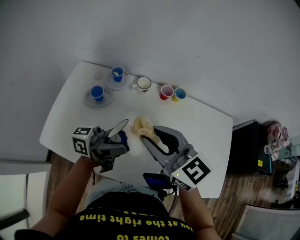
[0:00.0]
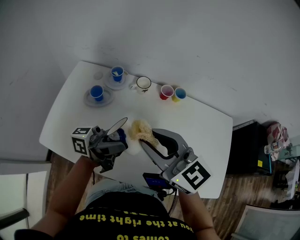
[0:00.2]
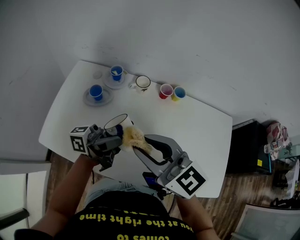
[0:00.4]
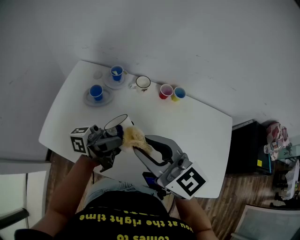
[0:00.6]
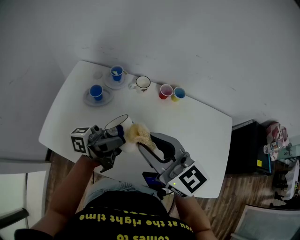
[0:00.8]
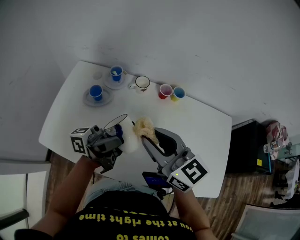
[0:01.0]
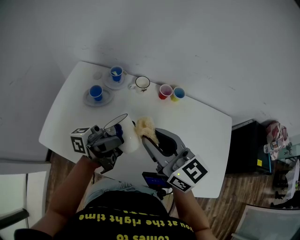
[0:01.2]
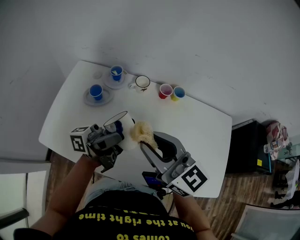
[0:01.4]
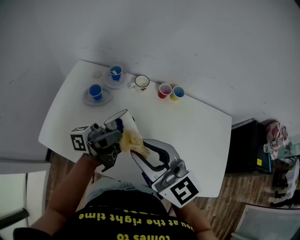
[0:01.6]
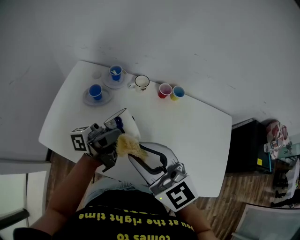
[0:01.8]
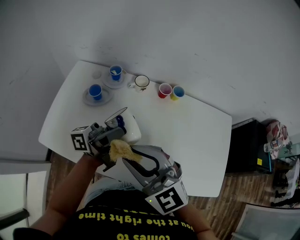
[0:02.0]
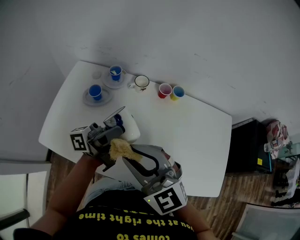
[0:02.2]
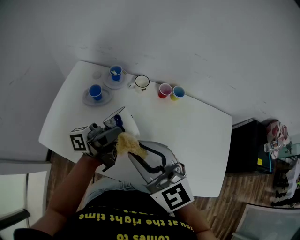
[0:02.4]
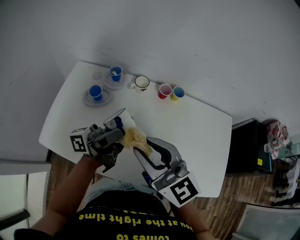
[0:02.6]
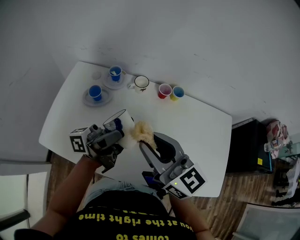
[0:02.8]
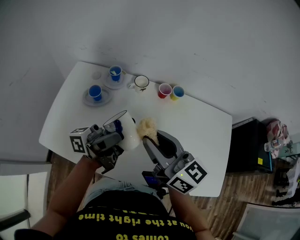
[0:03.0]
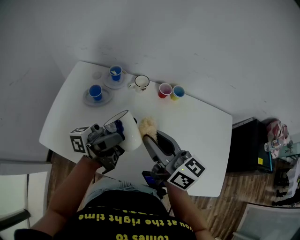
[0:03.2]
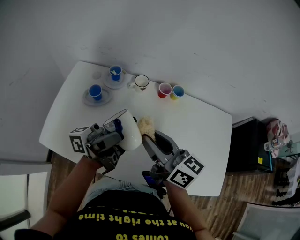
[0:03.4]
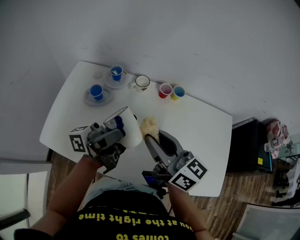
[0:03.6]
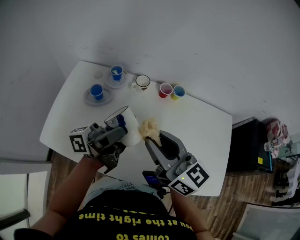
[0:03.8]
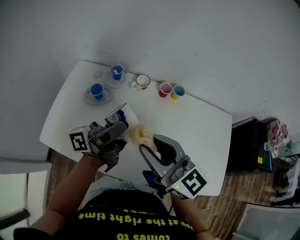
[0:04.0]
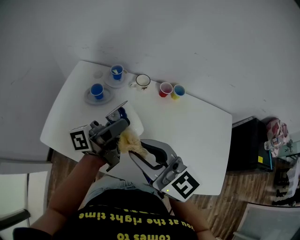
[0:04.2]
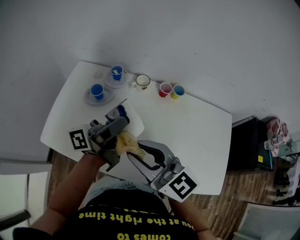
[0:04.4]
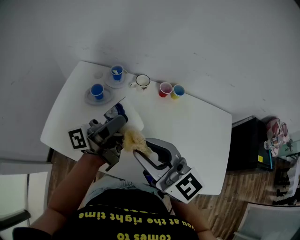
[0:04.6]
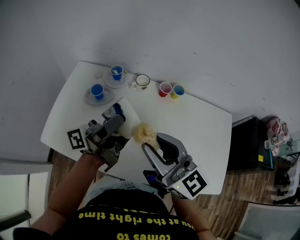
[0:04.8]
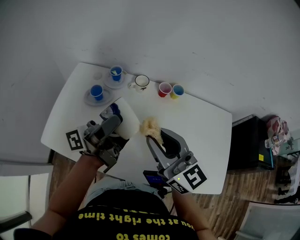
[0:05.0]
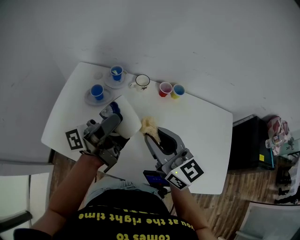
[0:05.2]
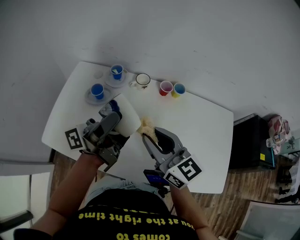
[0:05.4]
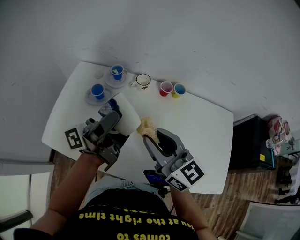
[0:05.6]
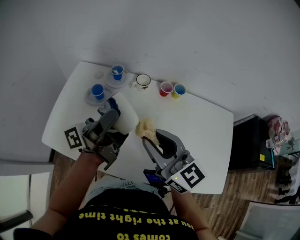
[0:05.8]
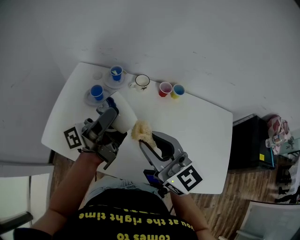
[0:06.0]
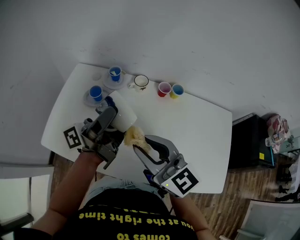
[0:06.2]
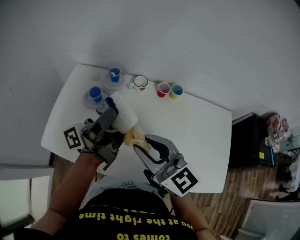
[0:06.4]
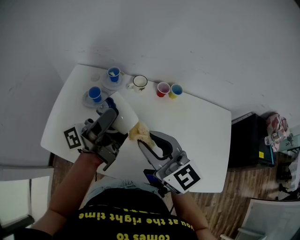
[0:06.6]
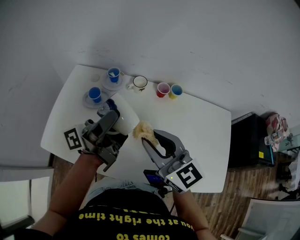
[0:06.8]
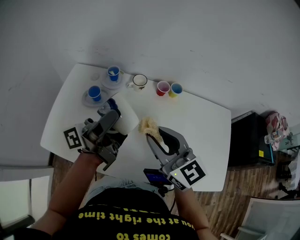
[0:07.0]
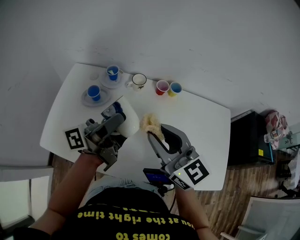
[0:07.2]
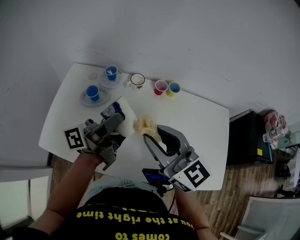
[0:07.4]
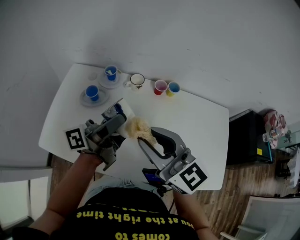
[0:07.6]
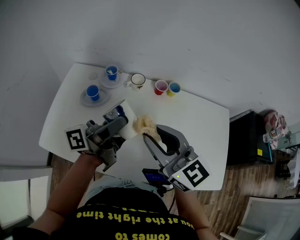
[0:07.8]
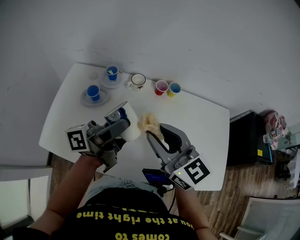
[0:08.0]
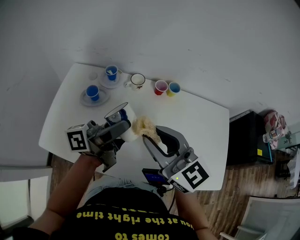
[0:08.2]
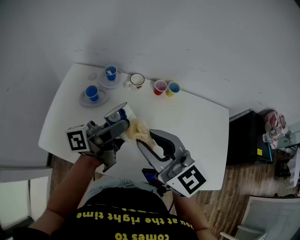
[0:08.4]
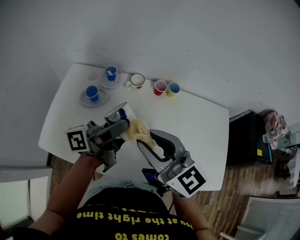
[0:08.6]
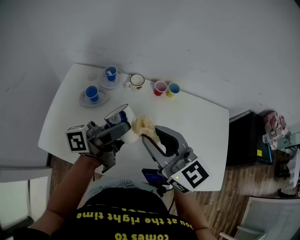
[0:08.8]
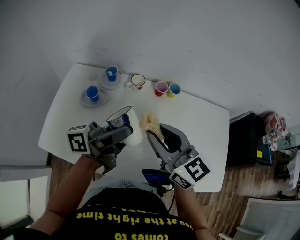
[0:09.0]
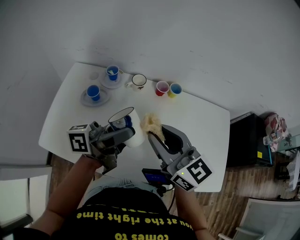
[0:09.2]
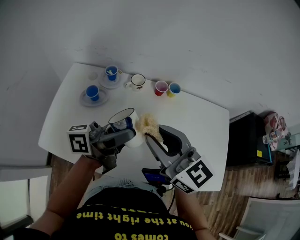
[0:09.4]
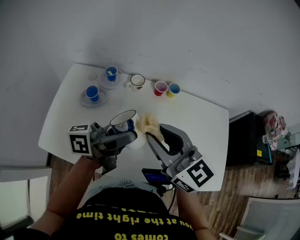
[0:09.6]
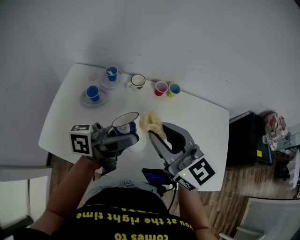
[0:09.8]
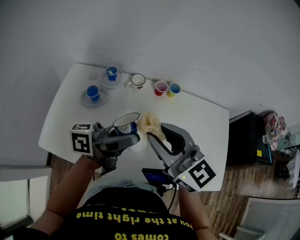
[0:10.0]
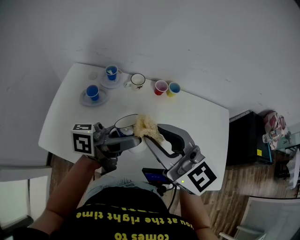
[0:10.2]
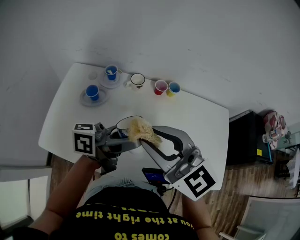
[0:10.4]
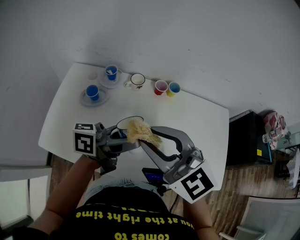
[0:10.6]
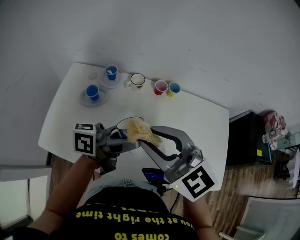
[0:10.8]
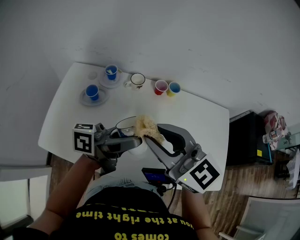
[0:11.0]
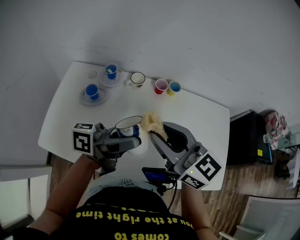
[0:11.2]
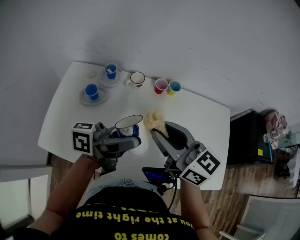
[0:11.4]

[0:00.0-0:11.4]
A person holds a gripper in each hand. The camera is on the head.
0:00.0 to 0:01.4: The grippers move only a little.
0:02.8 to 0:04.2: The right gripper shifts by roughly 5 cm.
0:04.2 to 0:05.6: The right gripper heads to the right, covering roughly 5 cm.
0:05.6 to 0:08.6: The grippers make only small movements.
0:08.6 to 0:10.0: There are only small adjustments of the grippers.

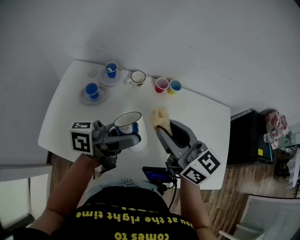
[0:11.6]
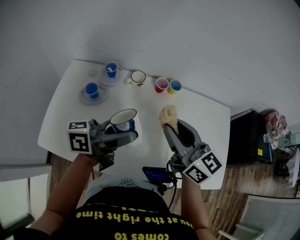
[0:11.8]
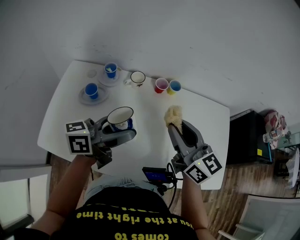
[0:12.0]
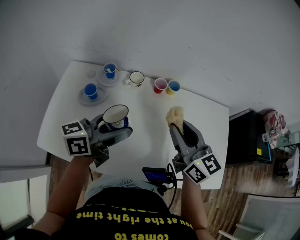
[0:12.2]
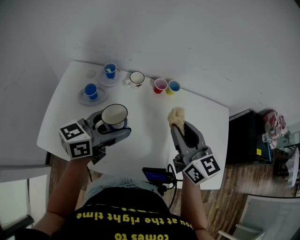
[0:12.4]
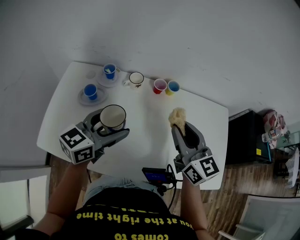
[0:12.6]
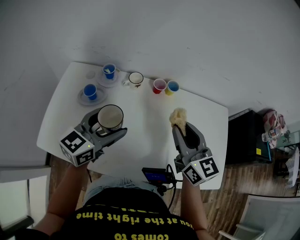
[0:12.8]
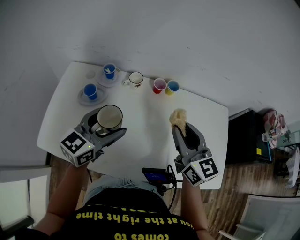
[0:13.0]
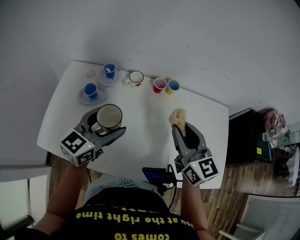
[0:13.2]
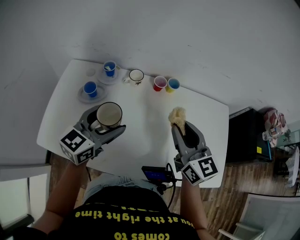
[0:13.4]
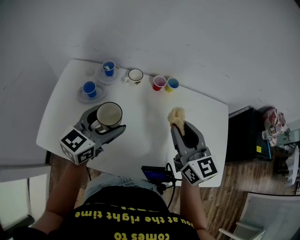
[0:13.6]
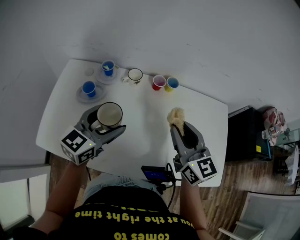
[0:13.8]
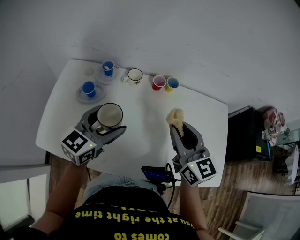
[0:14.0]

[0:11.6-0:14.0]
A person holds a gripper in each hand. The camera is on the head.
0:11.6 to 0:12.8: The left gripper heads to the left, covering some 5 cm, and swivels roughly 60 degrees. The right gripper moves to the right, approximately 5 cm, and changes its angle by about 20 degrees.
0:12.8 to 0:14.0: There are only small adjustments of the grippers.

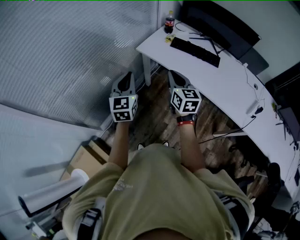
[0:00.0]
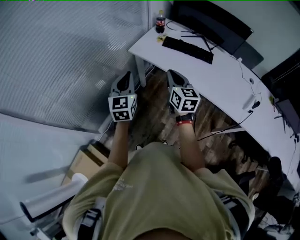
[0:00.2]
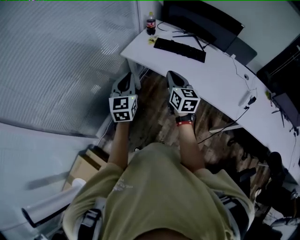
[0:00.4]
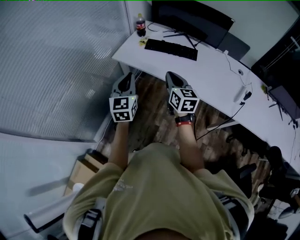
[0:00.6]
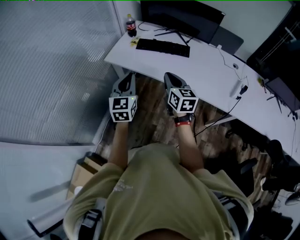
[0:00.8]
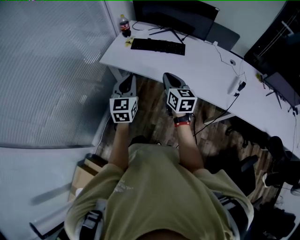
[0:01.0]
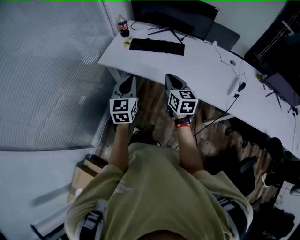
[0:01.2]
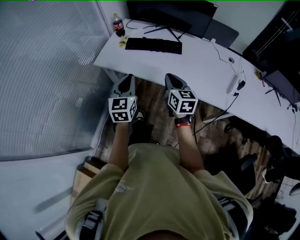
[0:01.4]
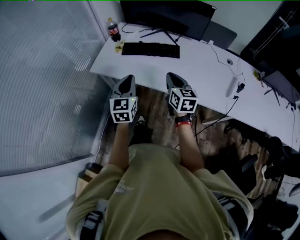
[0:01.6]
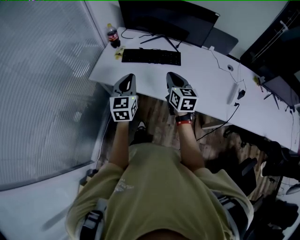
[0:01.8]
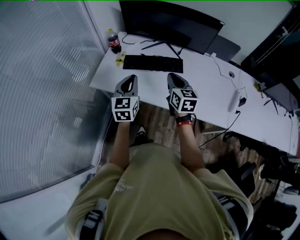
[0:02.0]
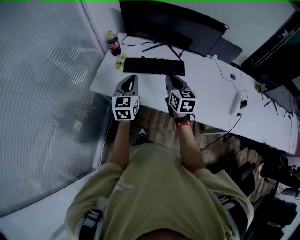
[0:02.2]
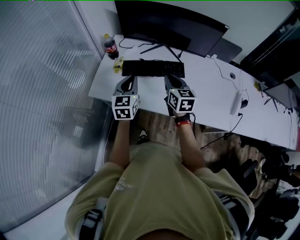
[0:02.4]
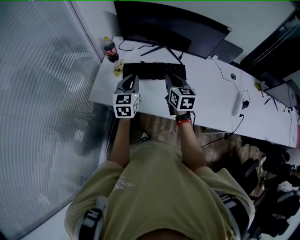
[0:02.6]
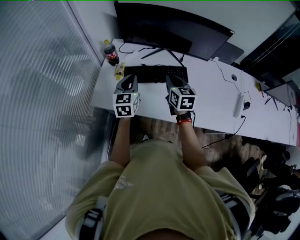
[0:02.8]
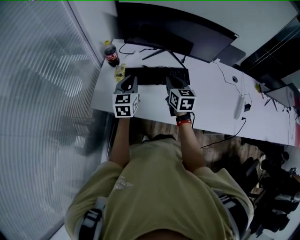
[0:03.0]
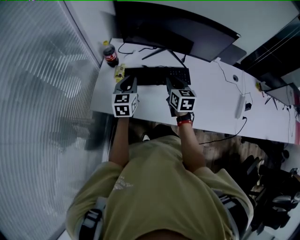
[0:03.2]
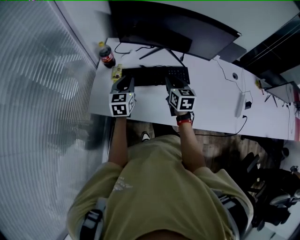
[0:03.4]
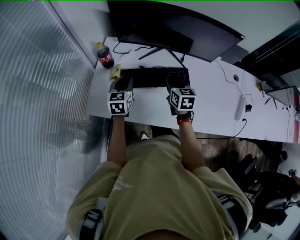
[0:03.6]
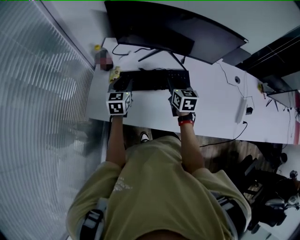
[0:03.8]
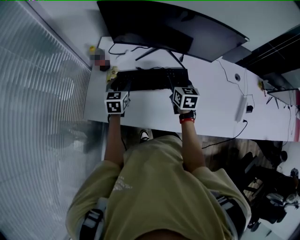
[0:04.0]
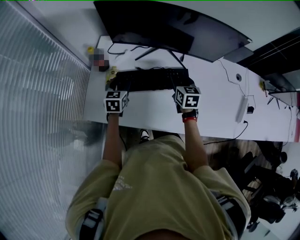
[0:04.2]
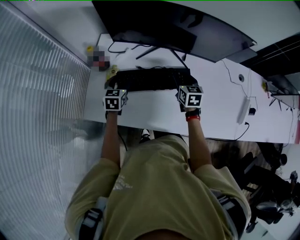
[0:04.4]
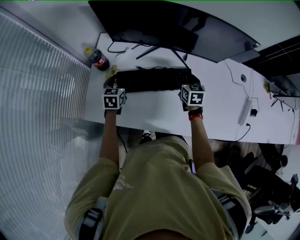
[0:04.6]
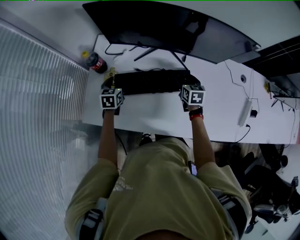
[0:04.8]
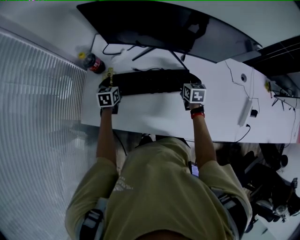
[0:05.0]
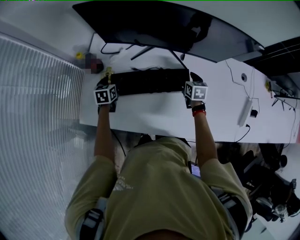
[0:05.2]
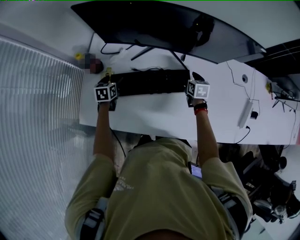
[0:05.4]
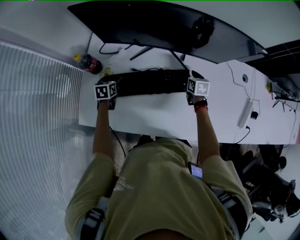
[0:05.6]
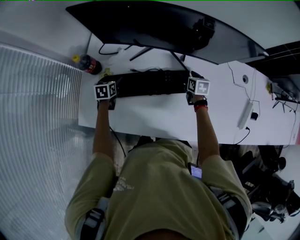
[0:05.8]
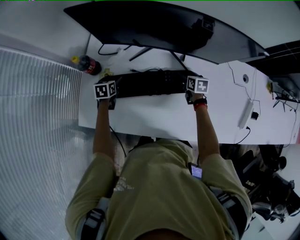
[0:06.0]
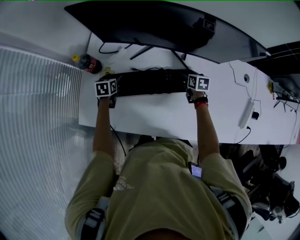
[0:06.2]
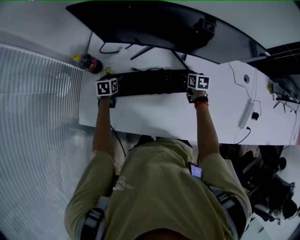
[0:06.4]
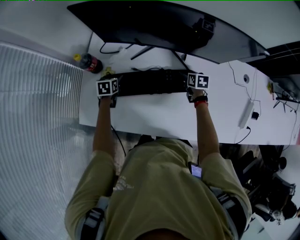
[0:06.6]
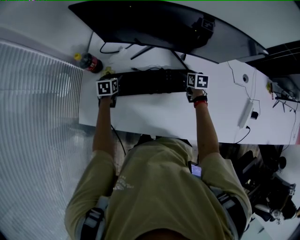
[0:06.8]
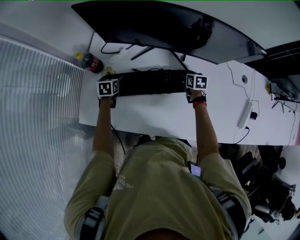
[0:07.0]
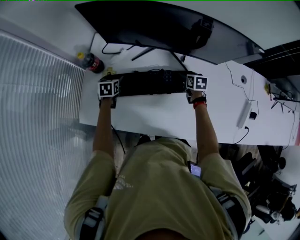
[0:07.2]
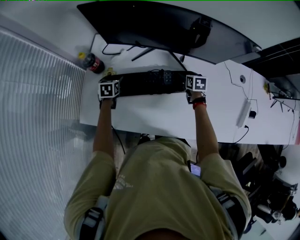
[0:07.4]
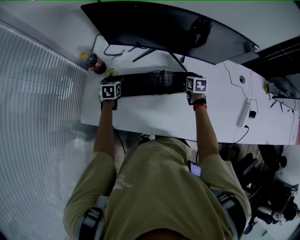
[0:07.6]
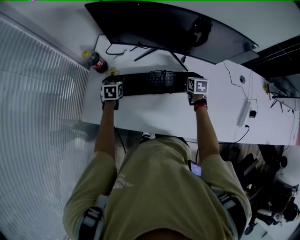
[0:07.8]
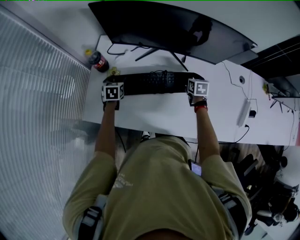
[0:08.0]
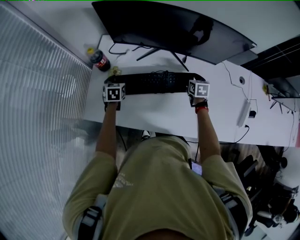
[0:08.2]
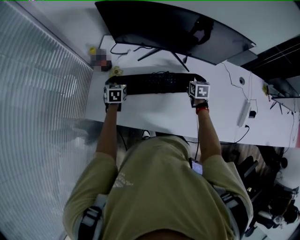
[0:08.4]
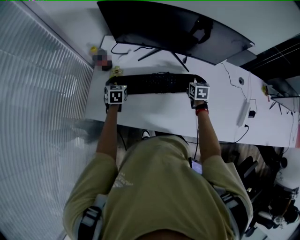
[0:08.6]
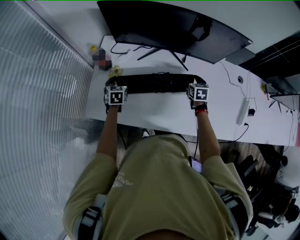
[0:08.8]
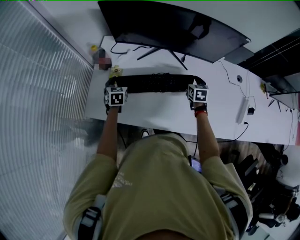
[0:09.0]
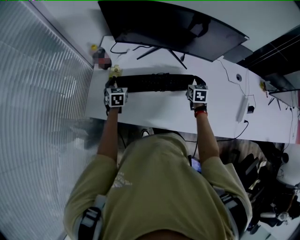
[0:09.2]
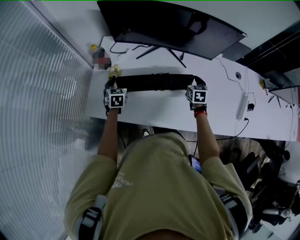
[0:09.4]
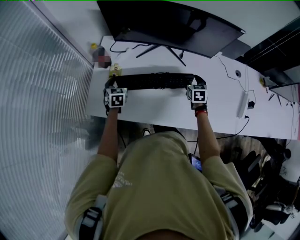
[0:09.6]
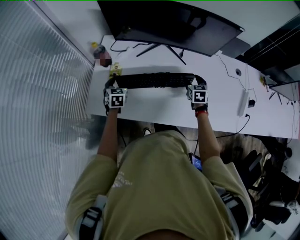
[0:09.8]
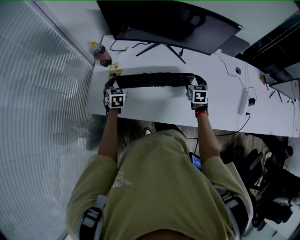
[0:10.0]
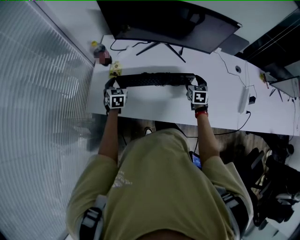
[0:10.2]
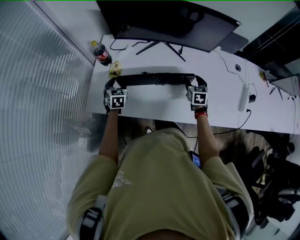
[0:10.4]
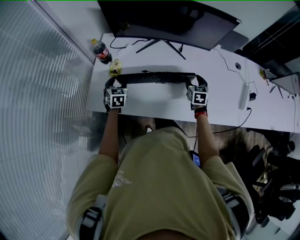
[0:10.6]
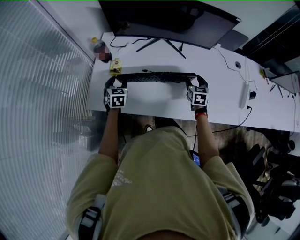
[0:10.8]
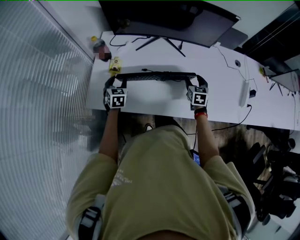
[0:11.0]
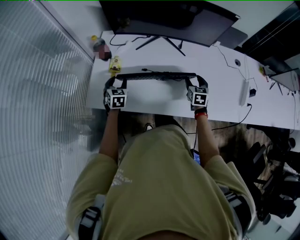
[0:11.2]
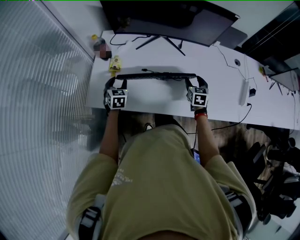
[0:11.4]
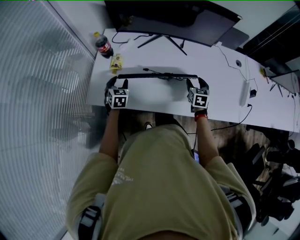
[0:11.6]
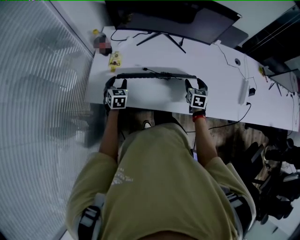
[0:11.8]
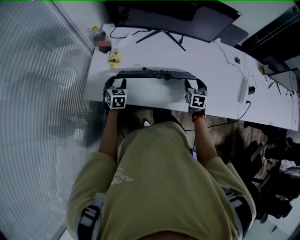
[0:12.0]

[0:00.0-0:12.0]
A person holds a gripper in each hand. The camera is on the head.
0:00.0 to 0:01.6: The left gripper shifts roughly 30 cm to the right and forward, and changes its angle by roughly 20 degrees. The right gripper moves to the right, roughly 25 cm, and turns by some 20 degrees.
0:01.6 to 0:03.0: Both grippers move forward, about 30 cm.
0:03.0 to 0:04.4: The right gripper shifts some 20 cm forward, downward and to the right, and opens up. The left gripper goes about 20 cm downward and forward, changes its angle by some 20 degrees, and opens.
0:04.4 to 0:06.0: The left gripper heads downward and forward, covering about 15 cm, and changes its angle by about 20 degrees; the right gripper is displaced downward, to the right and forward by roughly 20 cm, swivels some 20 degrees, and opens up.
0:06.0 to 0:07.6: The grippers stay close to where they were, moving slightly.
0:07.6 to 0:09.0: The left gripper moves backward and upward, approximately 10 cm. Meanwhile the right gripper shifts about 5 cm backward.
0:09.0 to 0:10.4: Both grippers travel together backward, approximately 5 cm.
0:10.4 to 0:12.0: The grippers both shift backward by approximately 10 cm.
